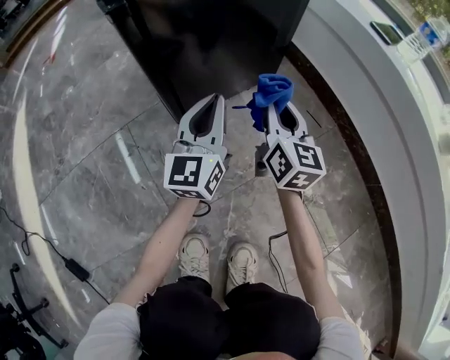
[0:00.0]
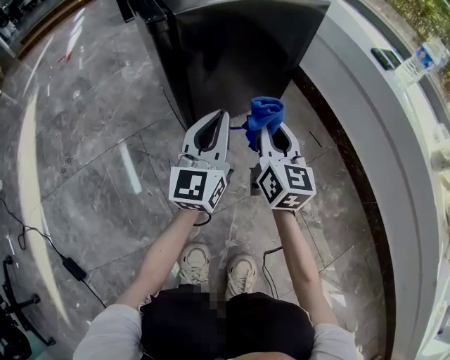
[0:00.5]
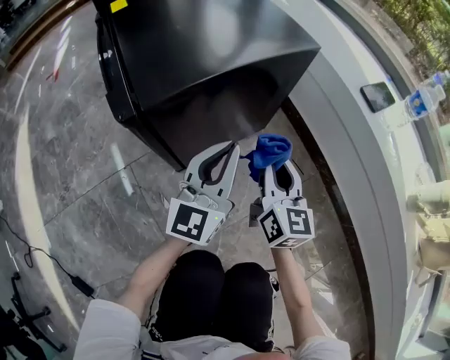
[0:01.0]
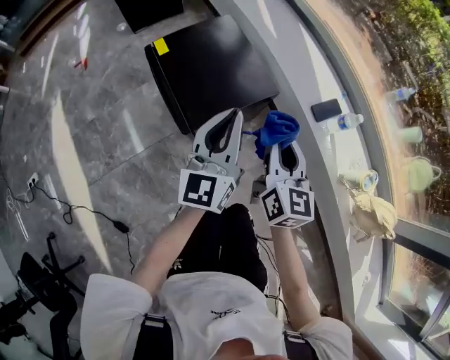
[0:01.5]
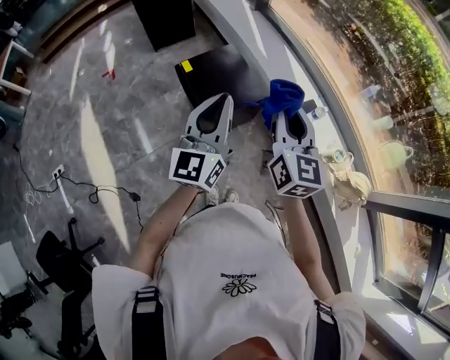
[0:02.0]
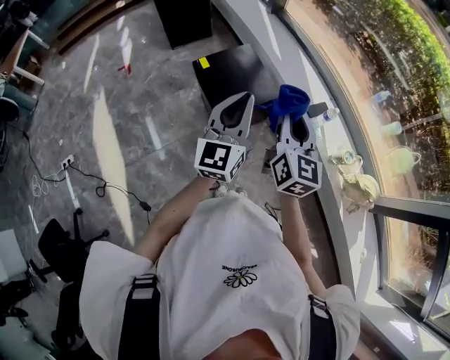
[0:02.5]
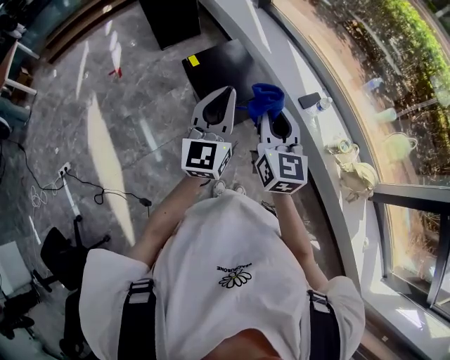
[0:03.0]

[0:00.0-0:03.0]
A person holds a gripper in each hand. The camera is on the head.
0:00.0 to 0:01.5: The grippers both shift upward by some 50 cm.
0:01.5 to 0:03.0: Both grippers move upward and backward, approximately 35 cm.

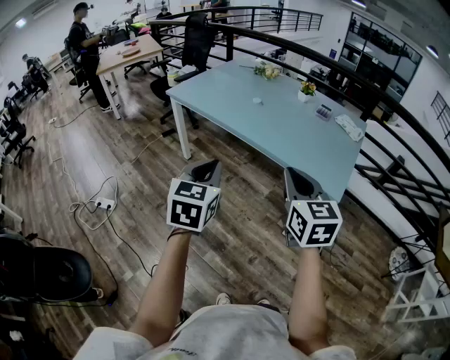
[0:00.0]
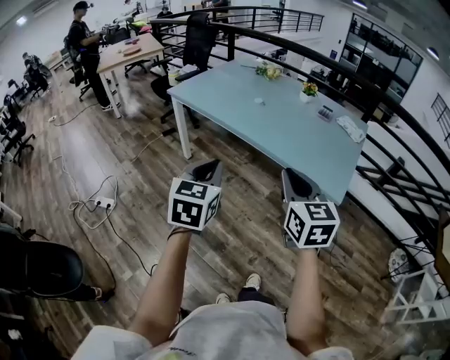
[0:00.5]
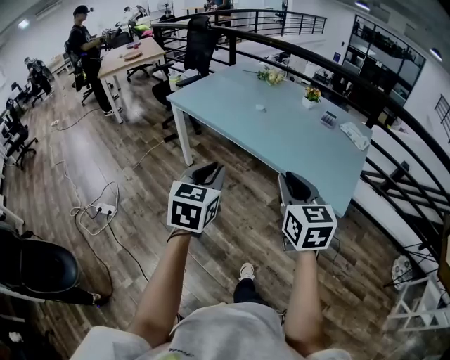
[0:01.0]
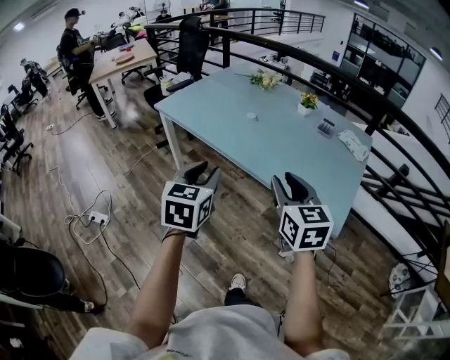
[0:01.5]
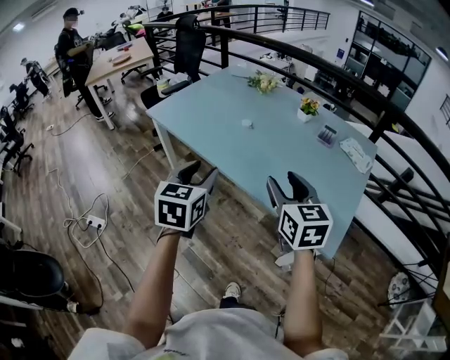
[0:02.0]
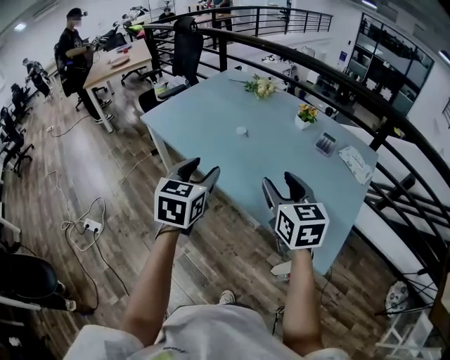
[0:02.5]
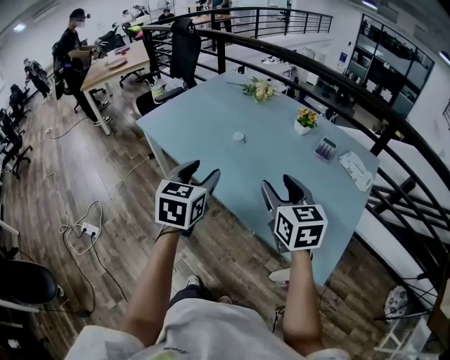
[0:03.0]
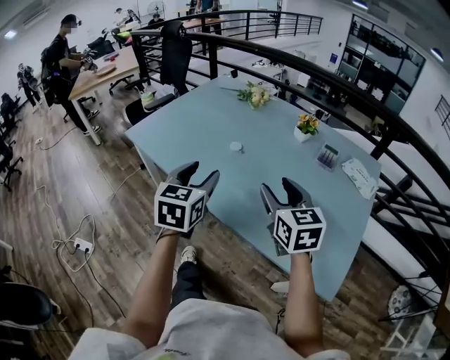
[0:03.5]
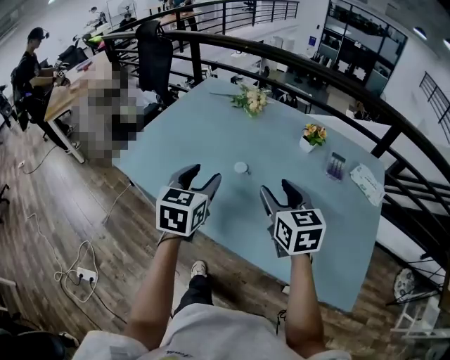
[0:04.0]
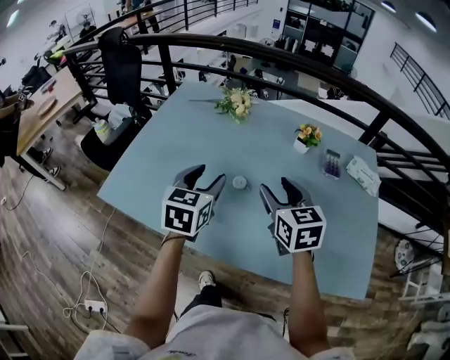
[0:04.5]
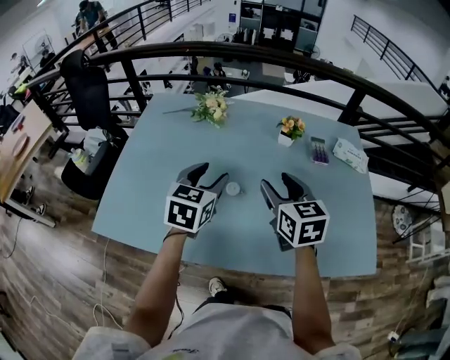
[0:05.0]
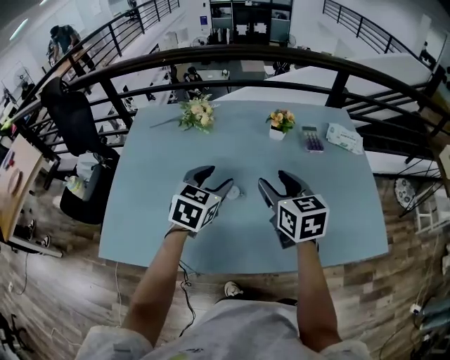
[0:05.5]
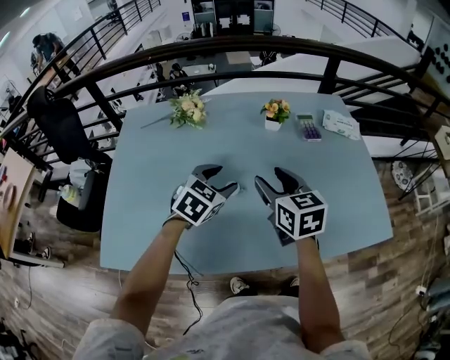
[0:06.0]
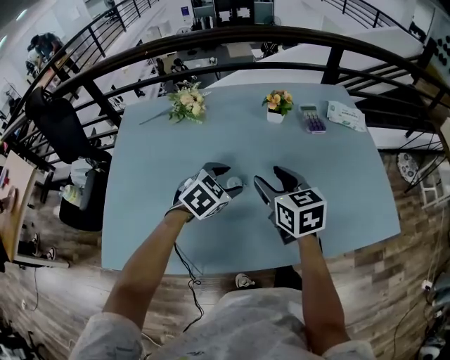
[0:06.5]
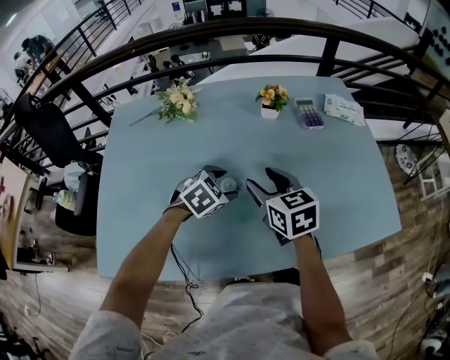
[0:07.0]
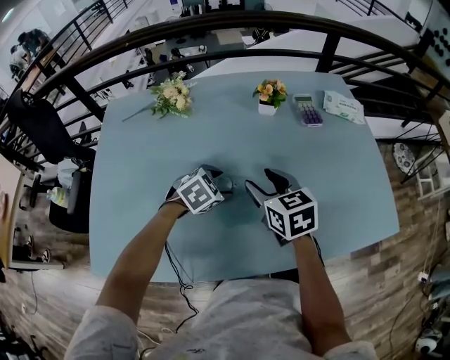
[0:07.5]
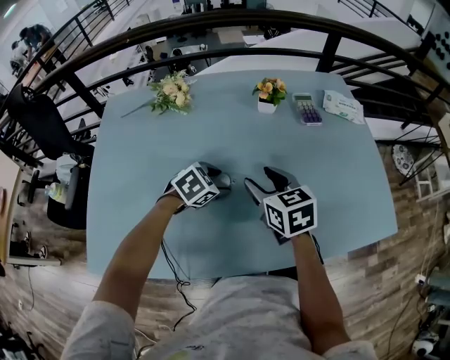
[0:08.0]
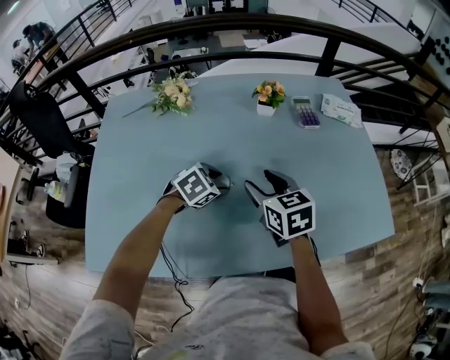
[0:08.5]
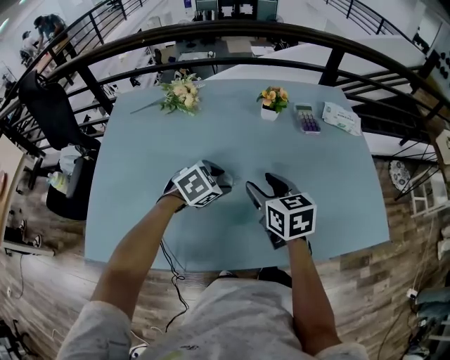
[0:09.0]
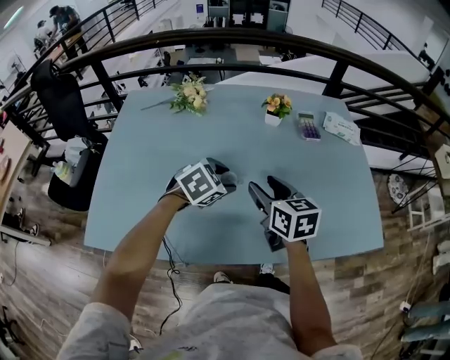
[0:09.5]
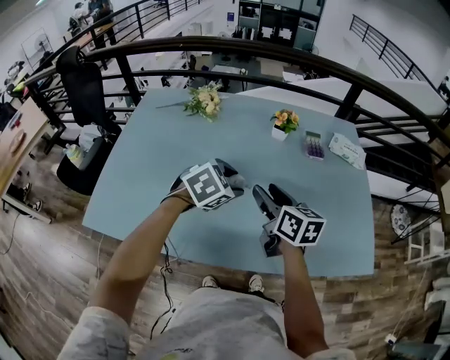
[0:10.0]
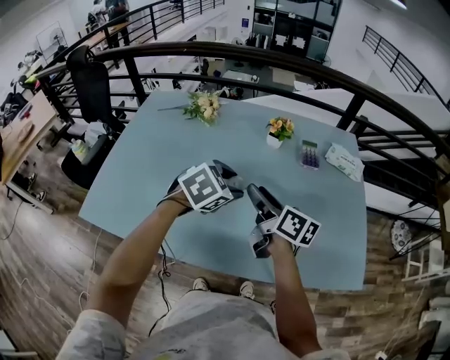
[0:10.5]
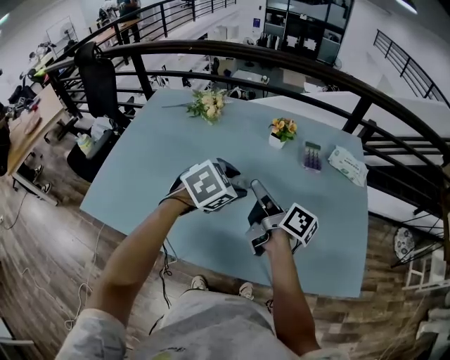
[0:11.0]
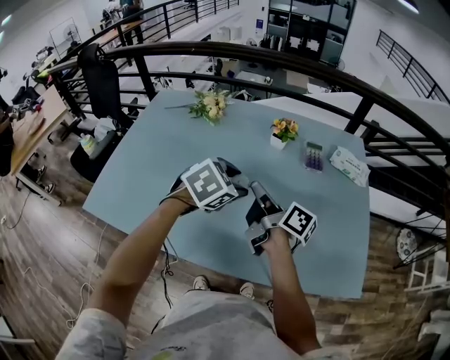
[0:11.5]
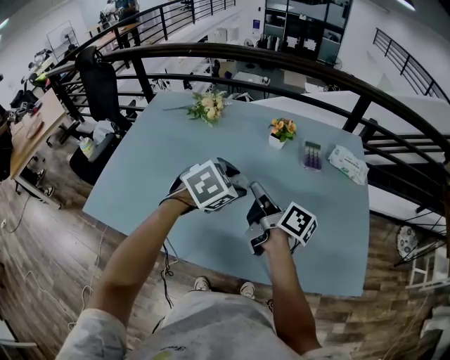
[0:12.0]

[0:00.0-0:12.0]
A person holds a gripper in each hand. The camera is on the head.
0:00.0 to 0:02.0: Both grippers move forward, about 25 cm. The left gripper opens; the right gripper opens up.
0:02.0 to 0:04.0: The grippers both shift forward by about 30 cm.
0:04.0 to 0:06.0: The left gripper shifts by some 20 cm, and swivels roughly 60 degrees. The right gripper ends up some 10 cm from where it was, and swivels some 30 degrees.
0:06.0 to 0:08.0: The left gripper heads downward, covering approximately 15 cm, and swivels approximately 30 degrees. The right gripper shifts roughly 10 cm downward.
0:08.0 to 0:10.0: The right gripper moves upward, roughly 5 cm, and turns by approximately 20 degrees, while the left gripper is displaced upward and to the right by some 15 cm.
0:10.0 to 0:12.0: The left gripper heads to the right, covering about 5 cm, while the right gripper rotates roughly 40 degrees, and closes.

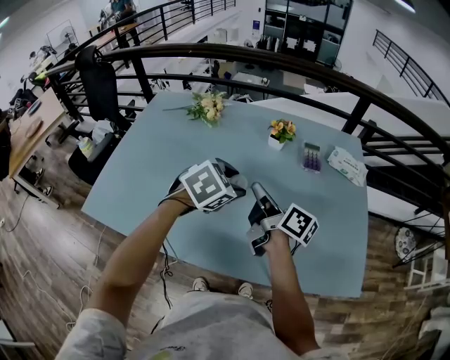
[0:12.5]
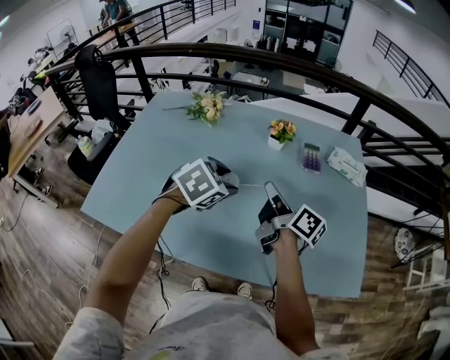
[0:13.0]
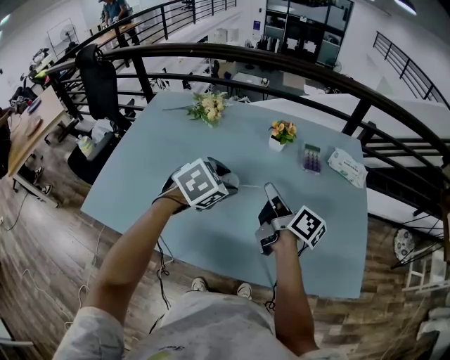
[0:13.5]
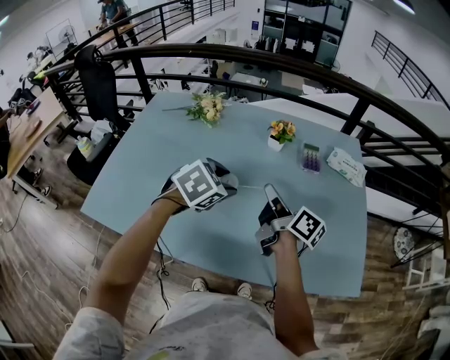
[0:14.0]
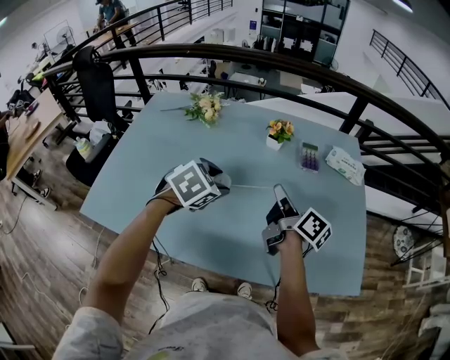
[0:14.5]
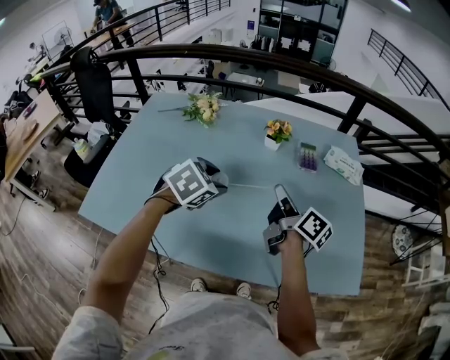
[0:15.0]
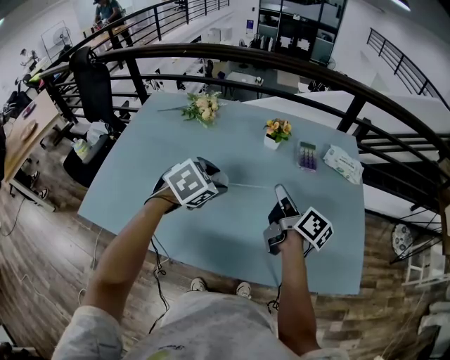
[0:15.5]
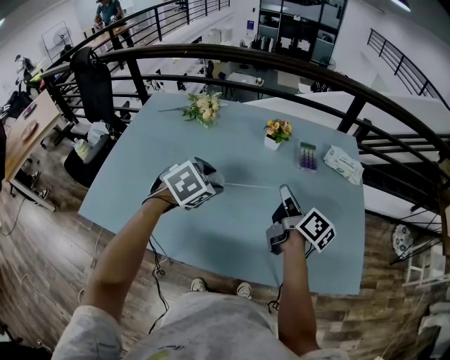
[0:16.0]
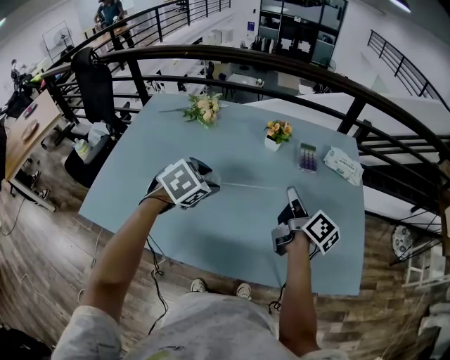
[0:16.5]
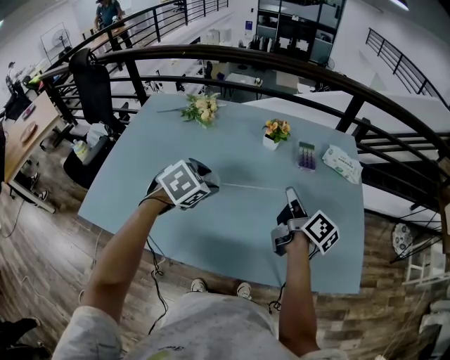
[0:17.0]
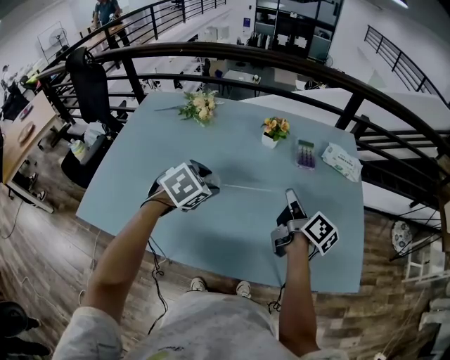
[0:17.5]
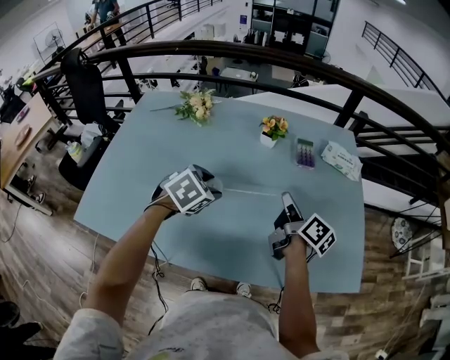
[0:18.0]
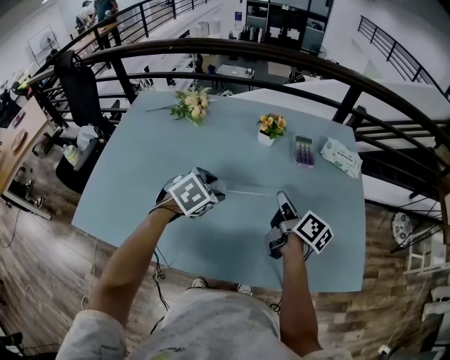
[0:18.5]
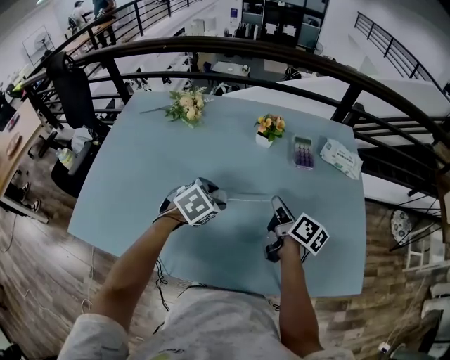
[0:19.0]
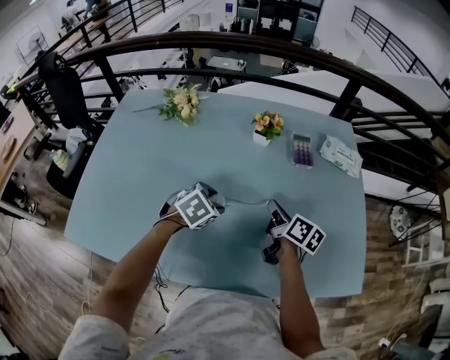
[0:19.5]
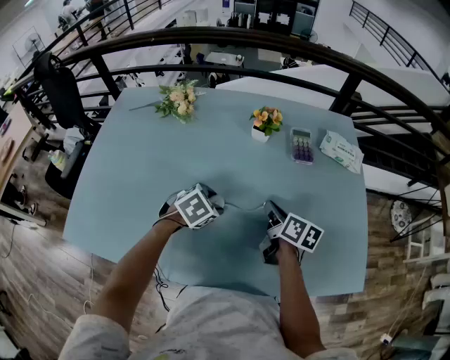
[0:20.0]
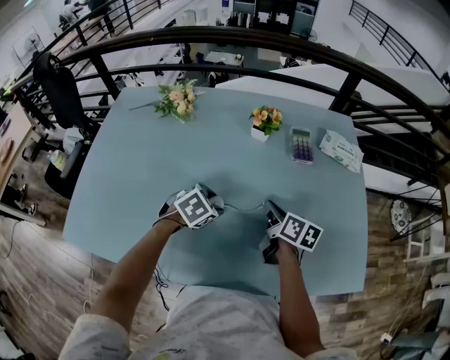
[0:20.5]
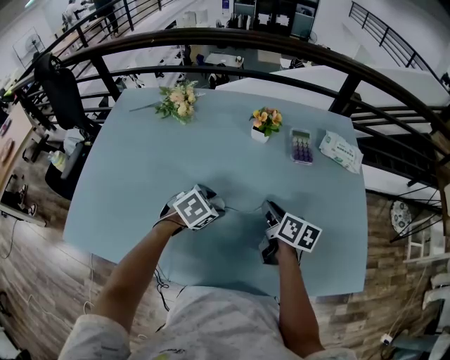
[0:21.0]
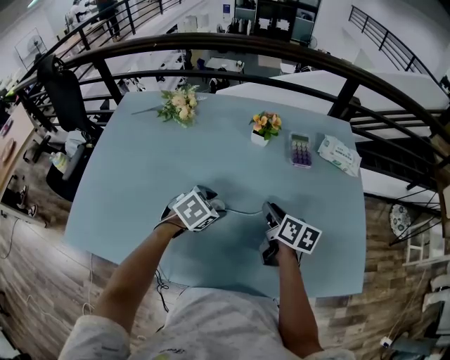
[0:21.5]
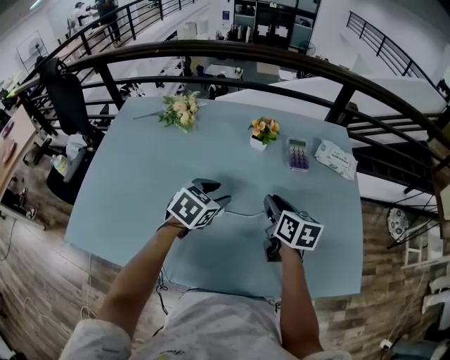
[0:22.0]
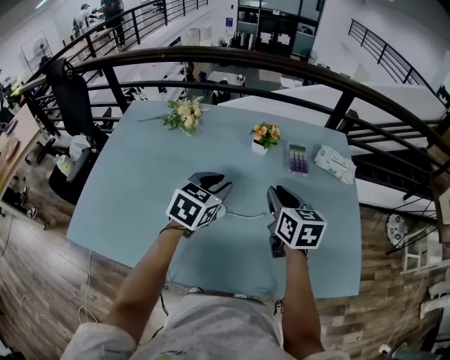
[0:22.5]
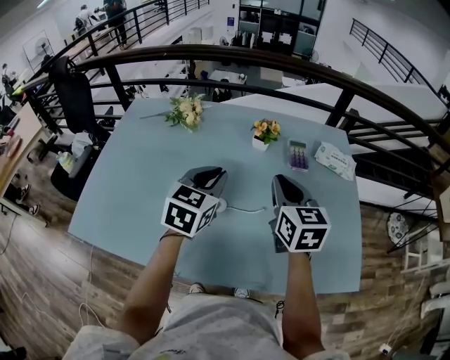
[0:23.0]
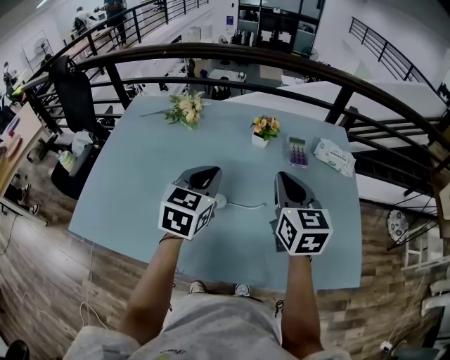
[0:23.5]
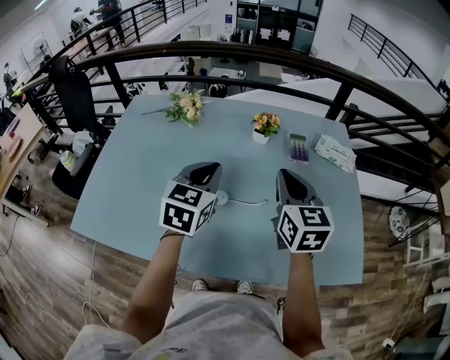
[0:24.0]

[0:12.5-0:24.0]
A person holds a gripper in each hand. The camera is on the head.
0:12.5 to 0:14.5: The right gripper moves to the right, approximately 5 cm.
0:14.5 to 0:16.5: There are only small adjustments of the grippers.
0:16.5 to 0:18.5: The left gripper is displaced downward by approximately 5 cm.
0:18.5 to 0:20.0: The two grippers go roughly 10 cm downward.
0:20.0 to 0:22.0: Both grippers move upward, roughly 10 cm. The left gripper turns by roughly 20 degrees.
0:22.0 to 0:24.0: The two grippers go some 15 cm upward. The right gripper rotates roughly 30 degrees, and closes. Meanwhile the left gripper rotates some 30 degrees, and closes up.
